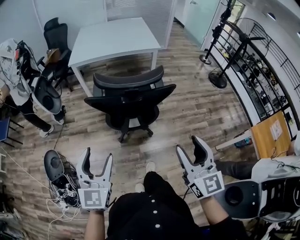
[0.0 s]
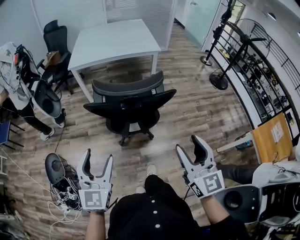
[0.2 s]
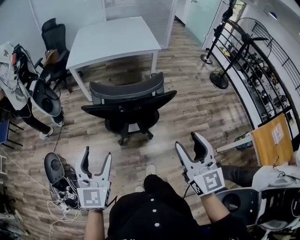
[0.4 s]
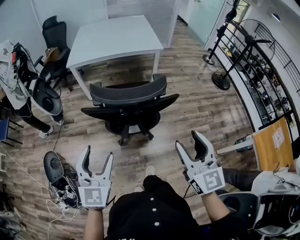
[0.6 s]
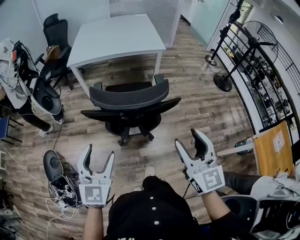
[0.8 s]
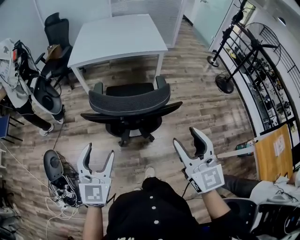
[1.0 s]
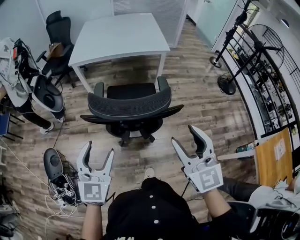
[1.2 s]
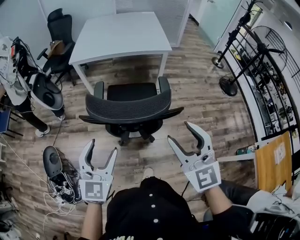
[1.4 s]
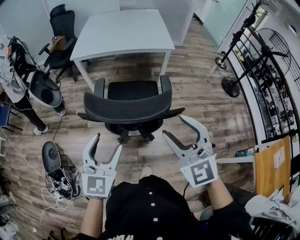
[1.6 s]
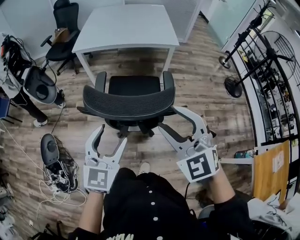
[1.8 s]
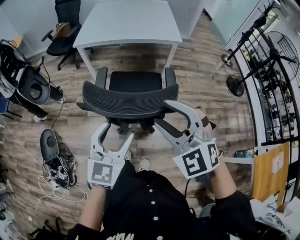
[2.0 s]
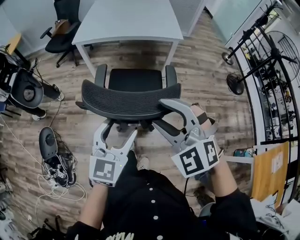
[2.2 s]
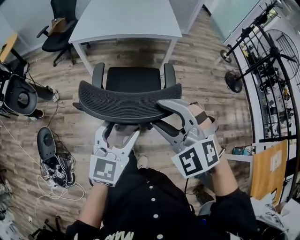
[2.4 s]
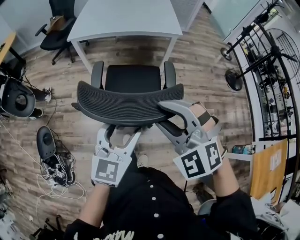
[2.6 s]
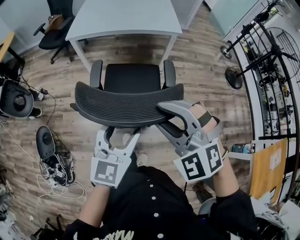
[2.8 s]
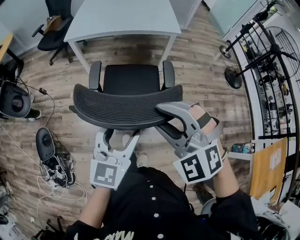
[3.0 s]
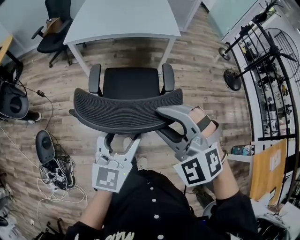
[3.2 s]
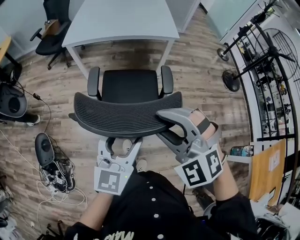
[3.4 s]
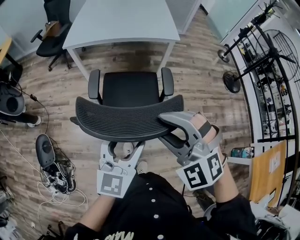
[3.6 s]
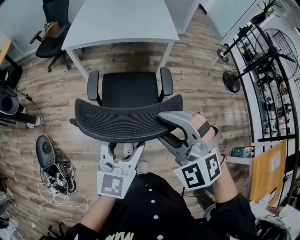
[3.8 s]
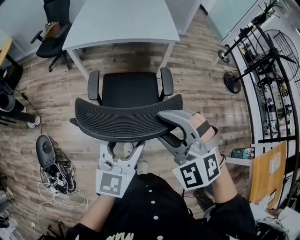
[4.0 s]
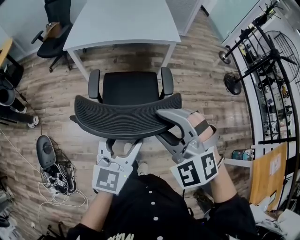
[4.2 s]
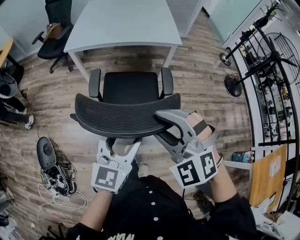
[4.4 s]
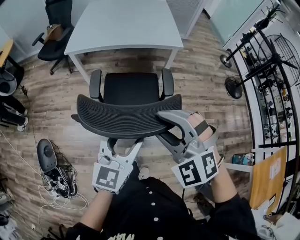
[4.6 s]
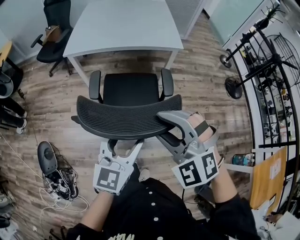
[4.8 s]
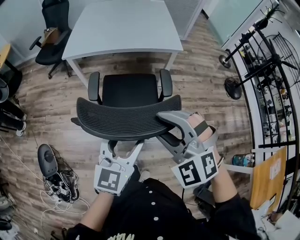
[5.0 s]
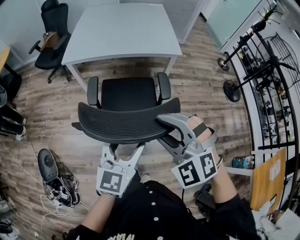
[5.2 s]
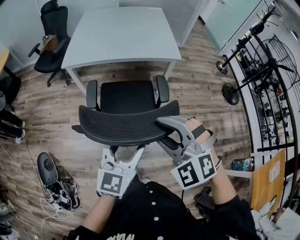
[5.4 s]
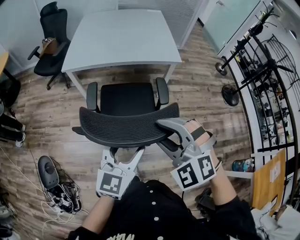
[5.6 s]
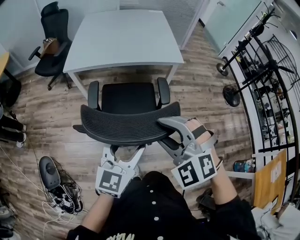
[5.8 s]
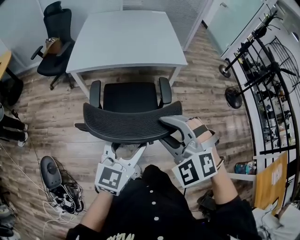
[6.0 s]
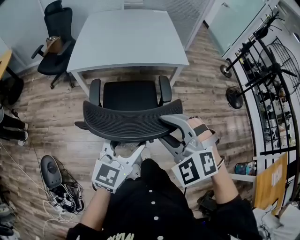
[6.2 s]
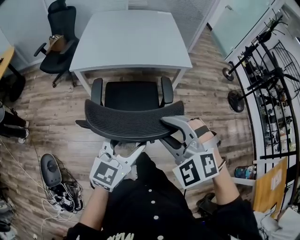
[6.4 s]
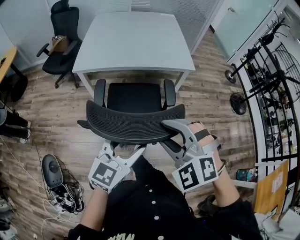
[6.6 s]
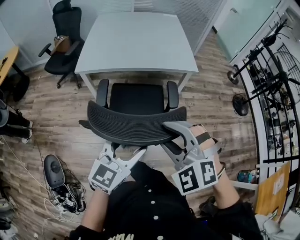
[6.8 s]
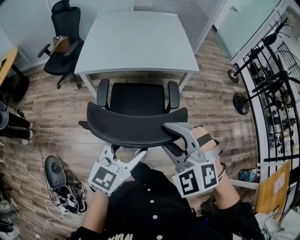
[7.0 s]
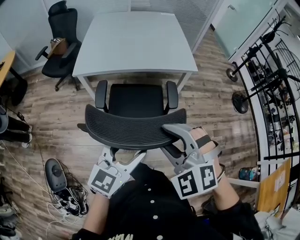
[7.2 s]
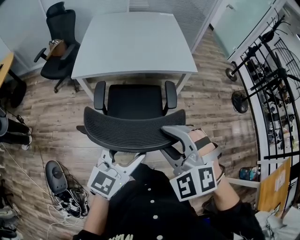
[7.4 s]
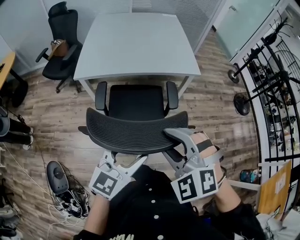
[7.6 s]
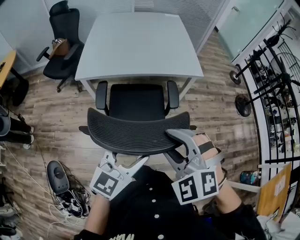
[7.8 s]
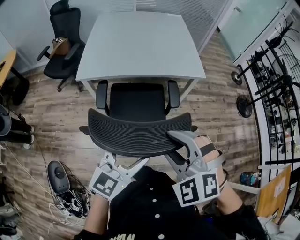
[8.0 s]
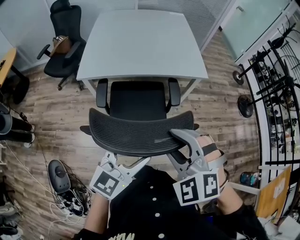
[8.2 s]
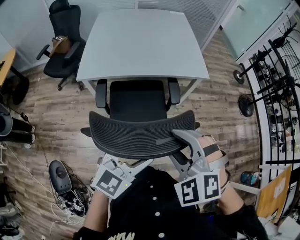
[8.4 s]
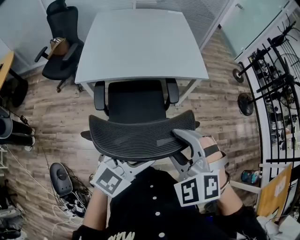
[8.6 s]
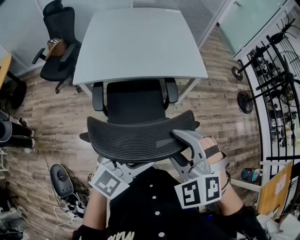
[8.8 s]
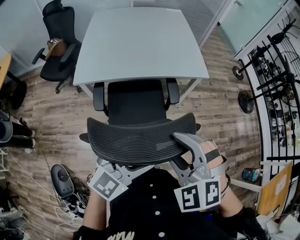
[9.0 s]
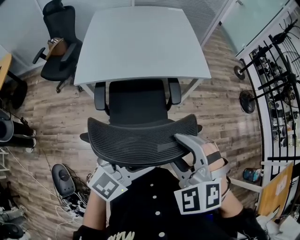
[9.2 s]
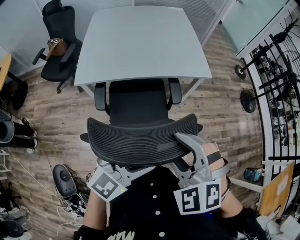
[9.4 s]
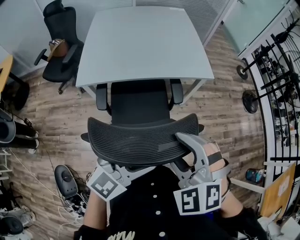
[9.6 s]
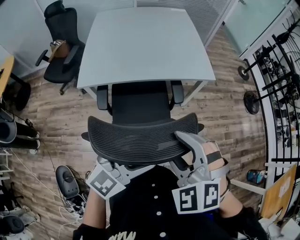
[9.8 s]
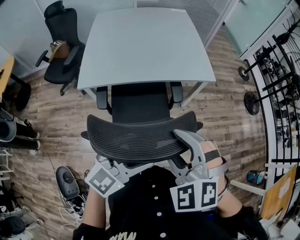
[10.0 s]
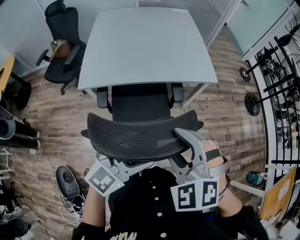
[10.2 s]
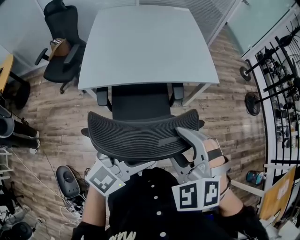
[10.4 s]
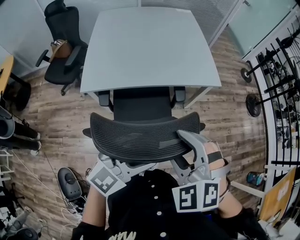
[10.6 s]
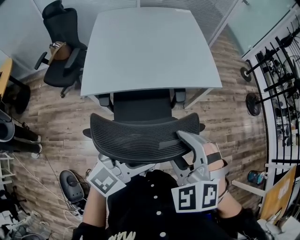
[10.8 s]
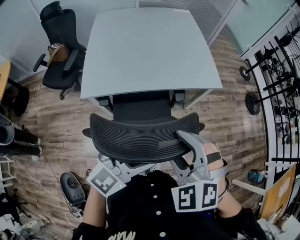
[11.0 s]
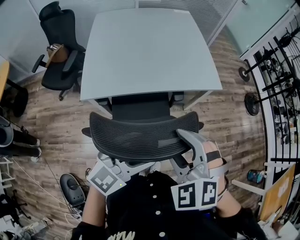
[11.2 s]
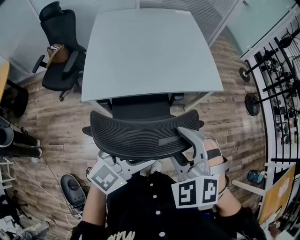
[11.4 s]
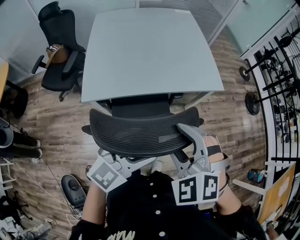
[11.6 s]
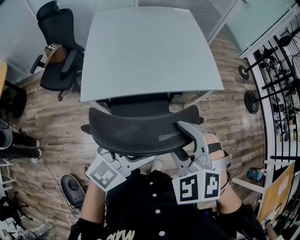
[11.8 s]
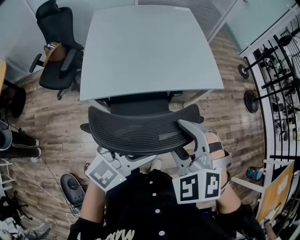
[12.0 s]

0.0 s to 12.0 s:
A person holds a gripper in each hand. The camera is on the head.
0.0 to 1.6 s: The right gripper travels forward by approximately 20 cm, and swivels some 40 degrees; the left gripper travels forward and to the right by approximately 20 cm.
1.6 to 3.0 s: The left gripper shifts roughly 5 cm to the right. Meanwhile the right gripper goes approximately 5 cm to the left, and swivels some 30 degrees.
3.0 to 4.4 s: The grippers move only a little.
4.4 to 6.0 s: The grippers both shift forward by roughly 10 cm.
6.0 to 7.6 s: The two grippers go approximately 5 cm to the left.
7.6 to 9.0 s: Both grippers move forward, some 5 cm. The left gripper swivels about 20 degrees.
9.0 to 10.4 s: Both grippers move forward and to the left, roughly 5 cm.
10.4 to 12.0 s: The two grippers go some 10 cm to the left and forward.

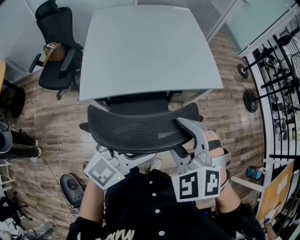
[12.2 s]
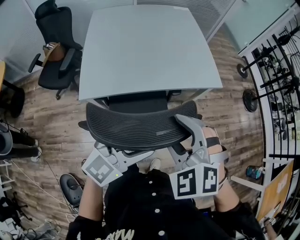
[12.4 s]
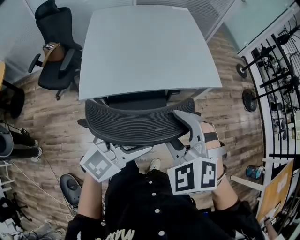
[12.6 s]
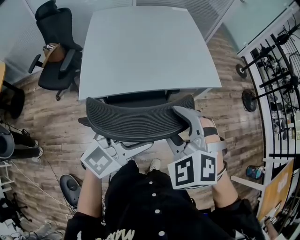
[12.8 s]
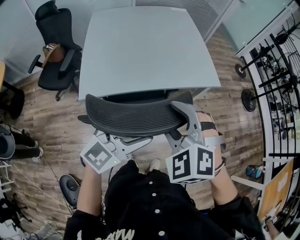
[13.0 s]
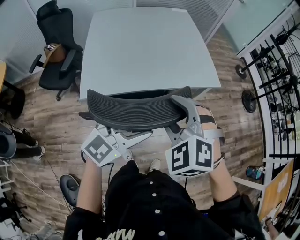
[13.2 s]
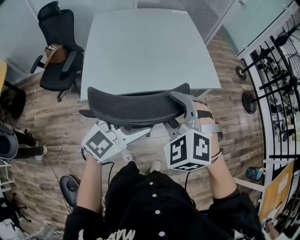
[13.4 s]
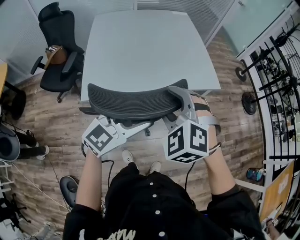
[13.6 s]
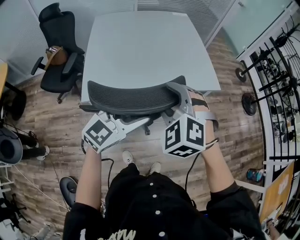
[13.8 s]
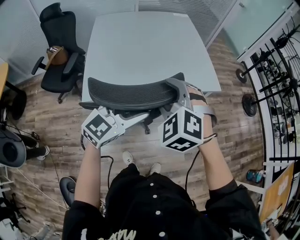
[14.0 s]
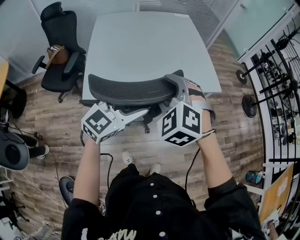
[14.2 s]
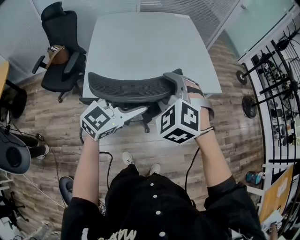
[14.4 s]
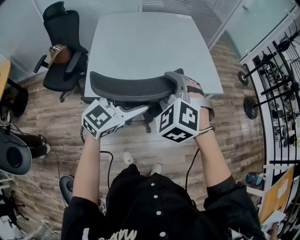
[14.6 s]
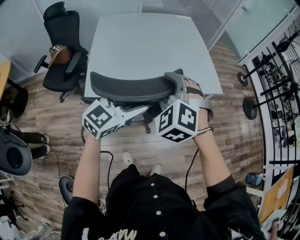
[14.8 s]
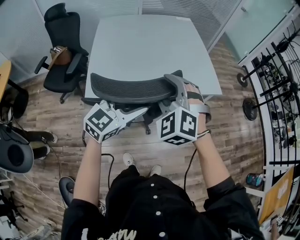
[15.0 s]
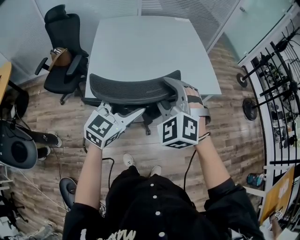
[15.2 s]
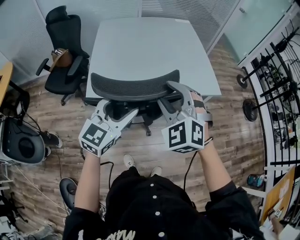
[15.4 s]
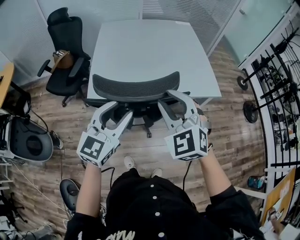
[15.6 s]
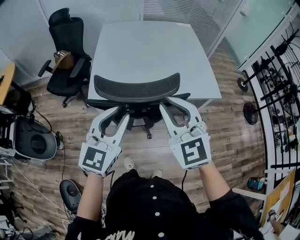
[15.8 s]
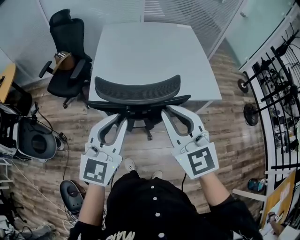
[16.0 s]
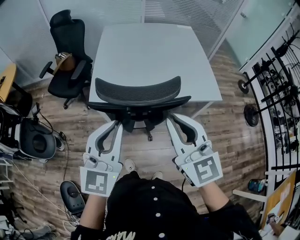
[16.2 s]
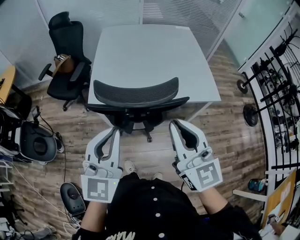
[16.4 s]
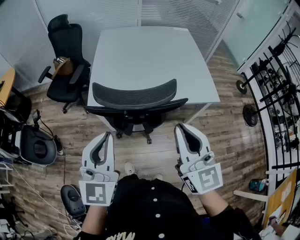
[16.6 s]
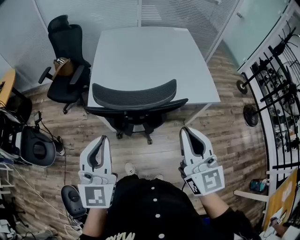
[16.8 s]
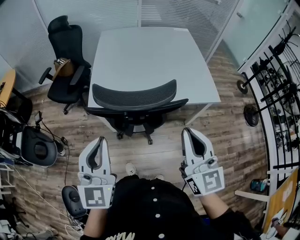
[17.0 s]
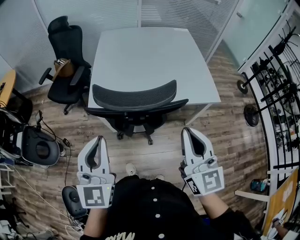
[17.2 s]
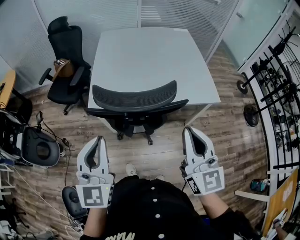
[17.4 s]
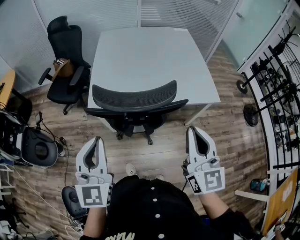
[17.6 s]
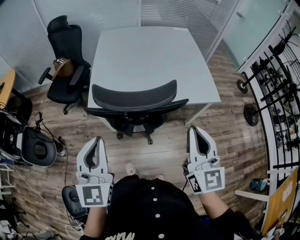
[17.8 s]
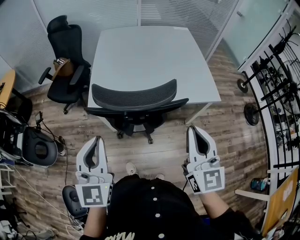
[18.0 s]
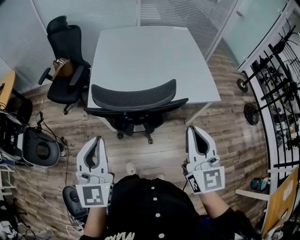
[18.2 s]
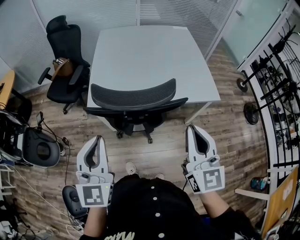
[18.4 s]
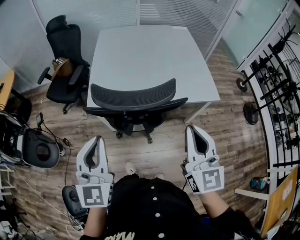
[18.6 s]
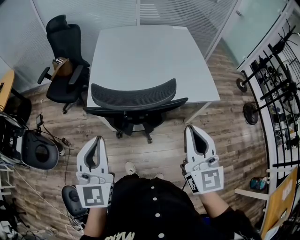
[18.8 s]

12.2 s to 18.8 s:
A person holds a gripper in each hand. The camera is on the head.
12.2 to 13.8 s: Both grippers travel together forward and to the left, some 10 cm.
13.8 to 15.4 s: The left gripper is displaced to the left by some 5 cm.
15.4 to 17.2 s: The left gripper is displaced backward, to the left and upward by some 15 cm, swivels roughly 30 degrees, and closes its fingers. Meanwhile the right gripper heads backward and to the right, covering some 15 cm, rolls clockwise, seen from behind, by roughly 50 degrees, and closes its fingers.
17.2 to 18.8 s: The grippers move only a little.

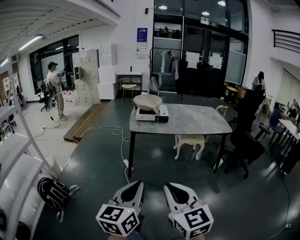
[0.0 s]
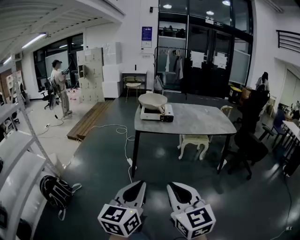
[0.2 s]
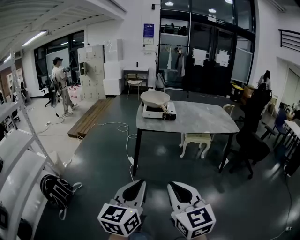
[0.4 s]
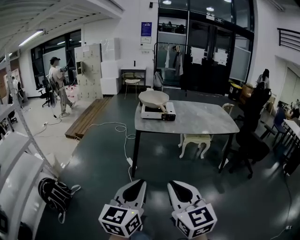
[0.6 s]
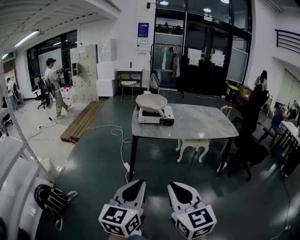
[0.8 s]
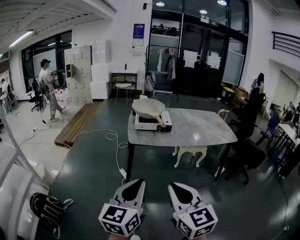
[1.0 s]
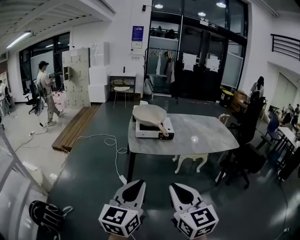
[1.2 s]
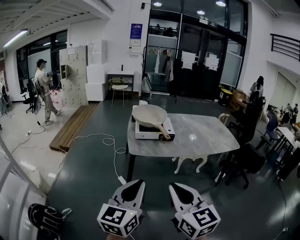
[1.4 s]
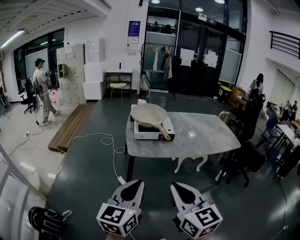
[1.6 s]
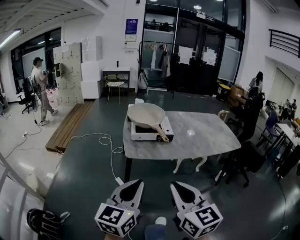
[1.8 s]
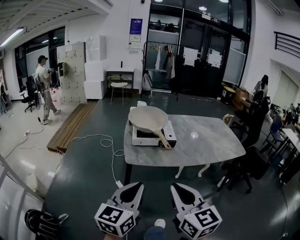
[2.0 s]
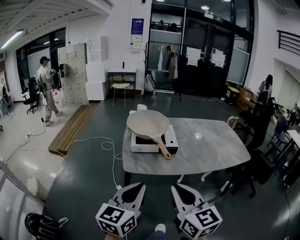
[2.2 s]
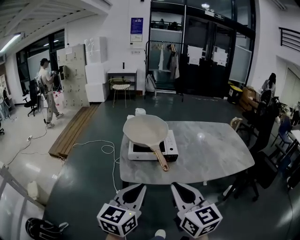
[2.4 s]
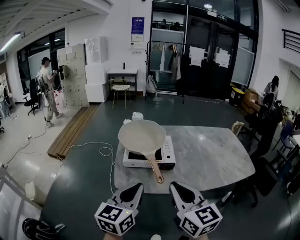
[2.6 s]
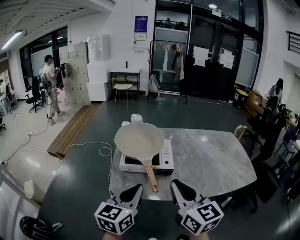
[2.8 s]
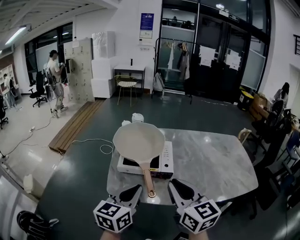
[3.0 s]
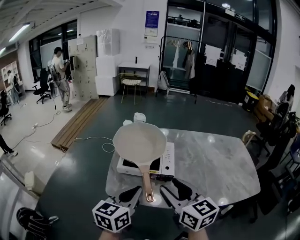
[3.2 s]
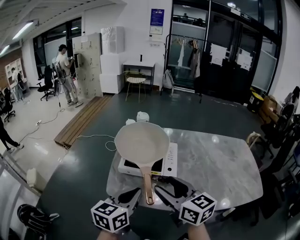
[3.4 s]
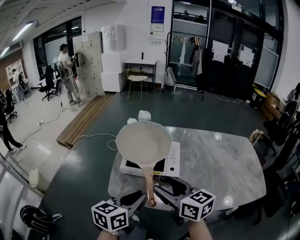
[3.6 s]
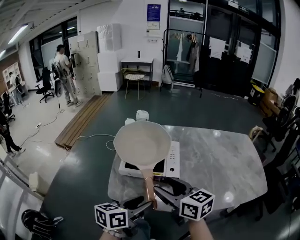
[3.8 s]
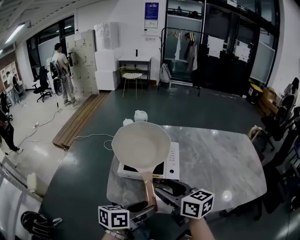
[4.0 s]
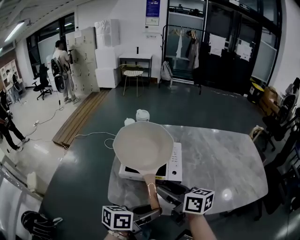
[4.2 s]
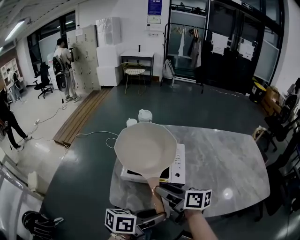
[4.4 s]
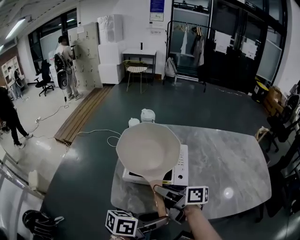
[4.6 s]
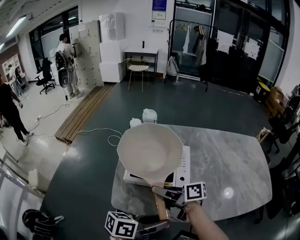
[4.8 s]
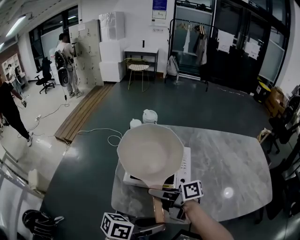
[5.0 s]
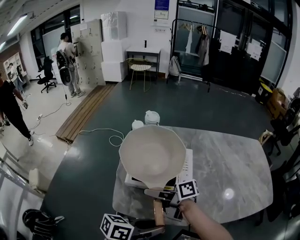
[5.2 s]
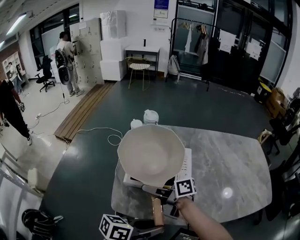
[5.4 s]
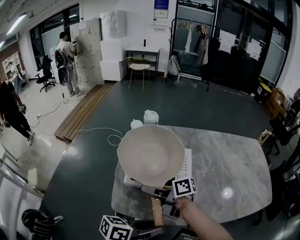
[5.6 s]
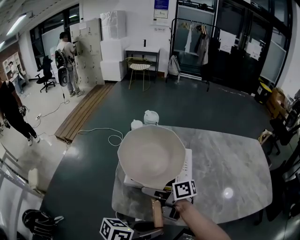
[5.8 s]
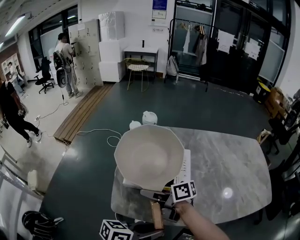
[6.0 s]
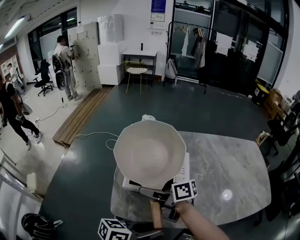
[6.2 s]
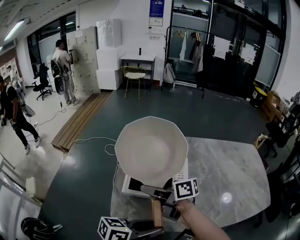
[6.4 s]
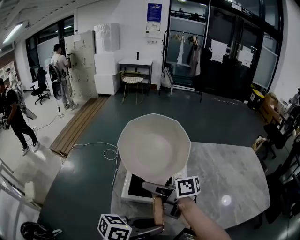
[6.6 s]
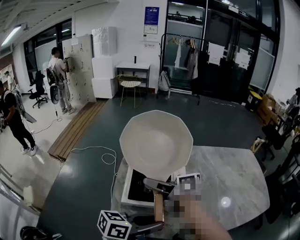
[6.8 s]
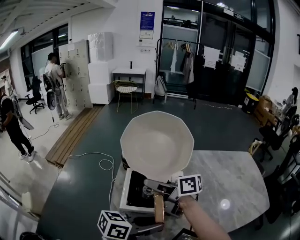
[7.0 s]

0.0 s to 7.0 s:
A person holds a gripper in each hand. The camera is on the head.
0.0 to 1.4 s: The grippers both shift forward by some 25 cm.
1.4 to 2.8 s: Both grippers move forward, some 35 cm.
2.8 to 4.2 s: The right gripper moves downward and forward, roughly 20 cm, swivels approximately 40 degrees, and opens. The left gripper heads downward and to the right, covering some 15 cm, swivels about 50 degrees, and opens its fingers.
4.2 to 5.6 s: The right gripper shifts by roughly 15 cm, and swivels roughly 40 degrees.
5.6 to 7.0 s: The right gripper moves about 15 cm; the left gripper moves approximately 10 cm.
